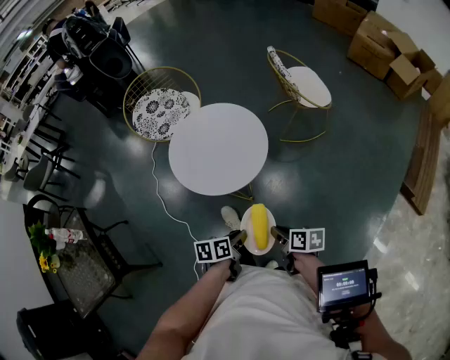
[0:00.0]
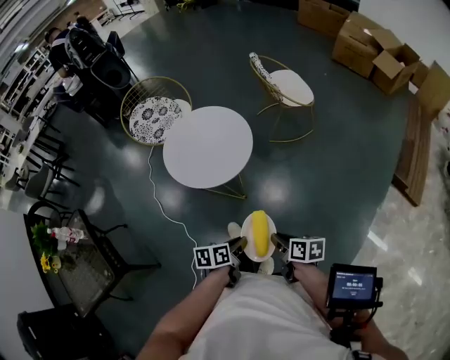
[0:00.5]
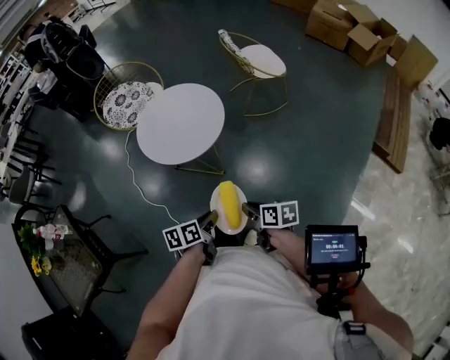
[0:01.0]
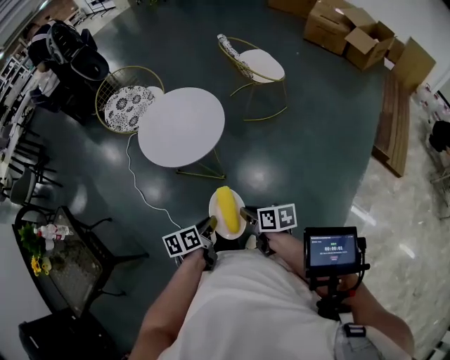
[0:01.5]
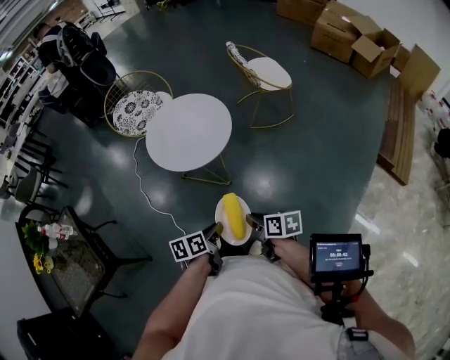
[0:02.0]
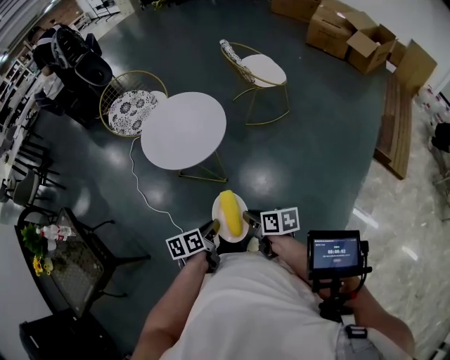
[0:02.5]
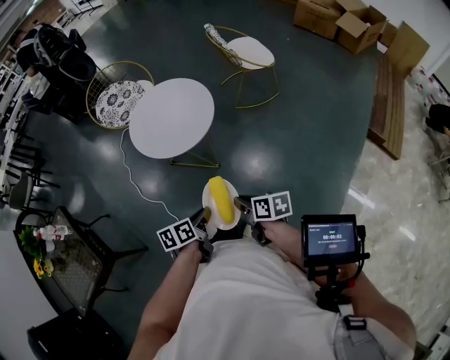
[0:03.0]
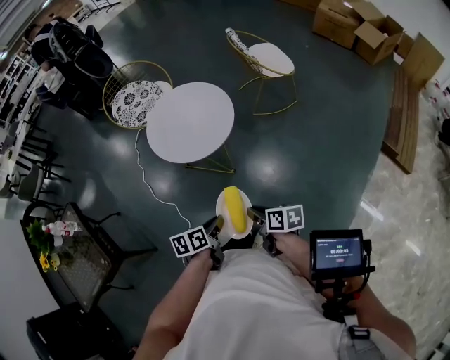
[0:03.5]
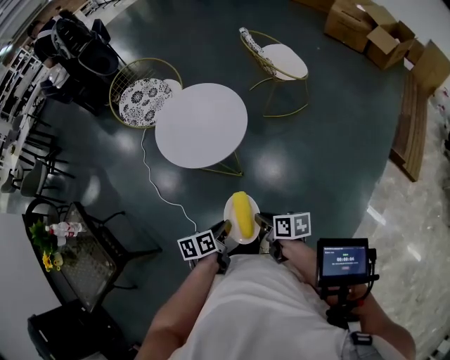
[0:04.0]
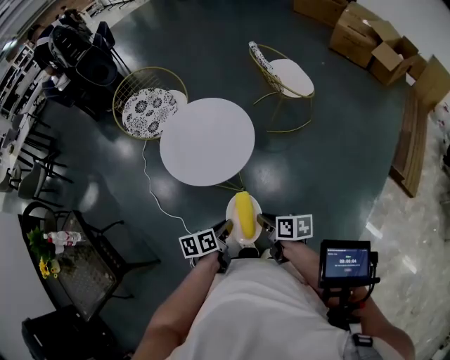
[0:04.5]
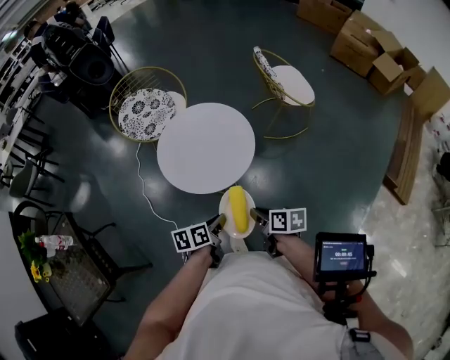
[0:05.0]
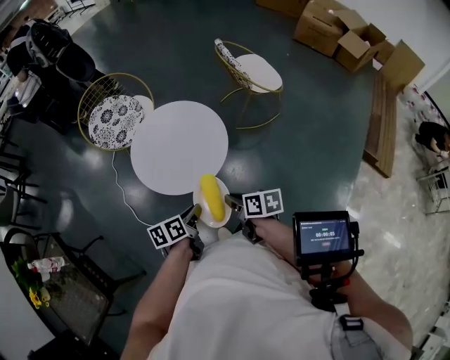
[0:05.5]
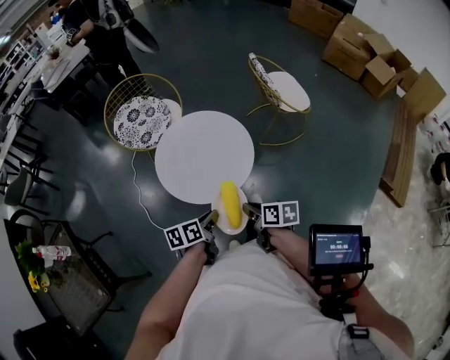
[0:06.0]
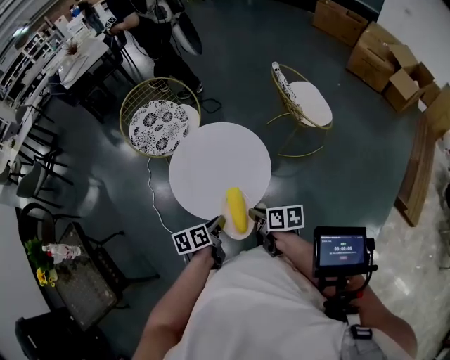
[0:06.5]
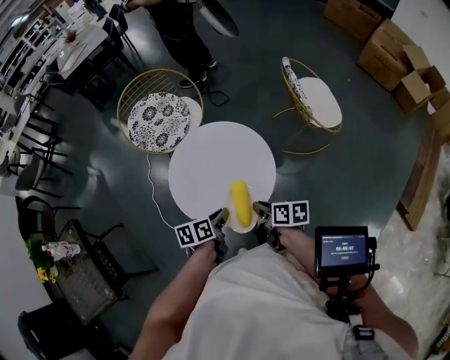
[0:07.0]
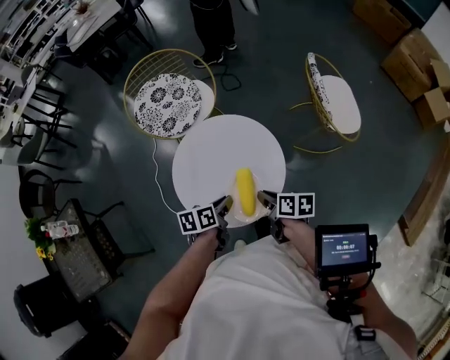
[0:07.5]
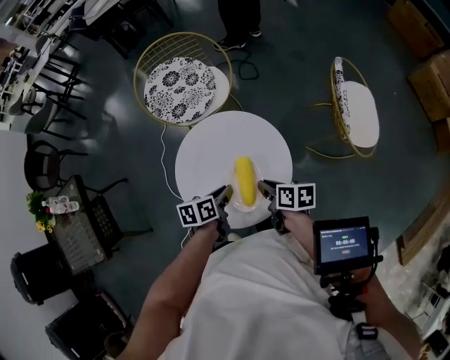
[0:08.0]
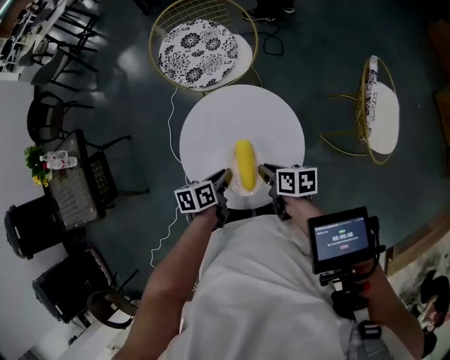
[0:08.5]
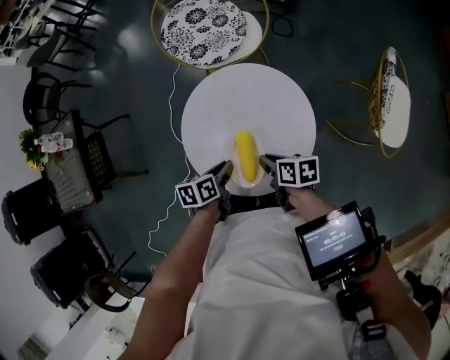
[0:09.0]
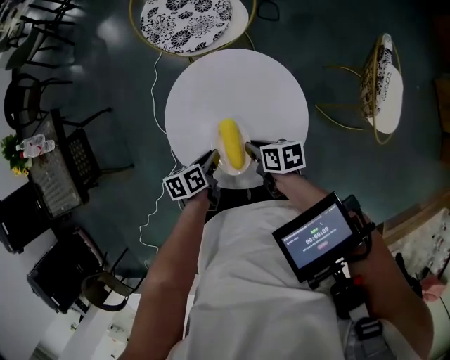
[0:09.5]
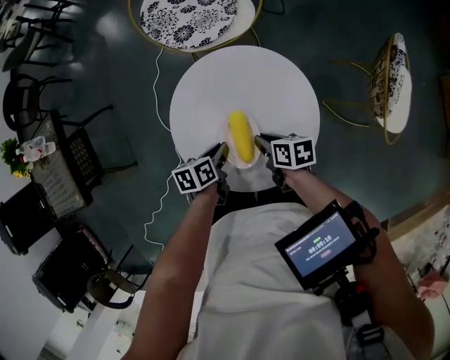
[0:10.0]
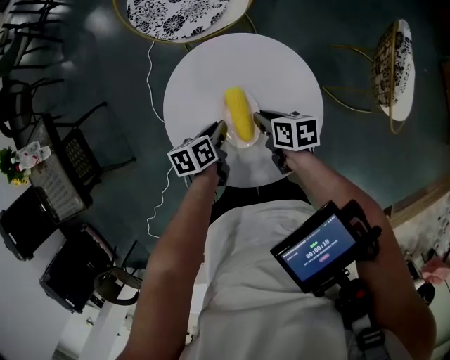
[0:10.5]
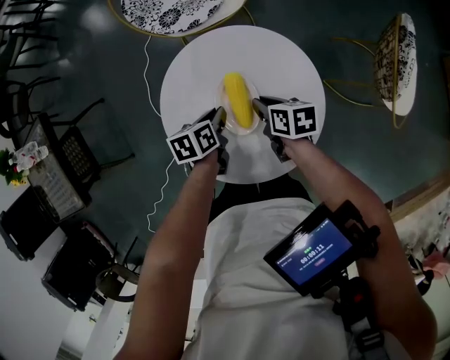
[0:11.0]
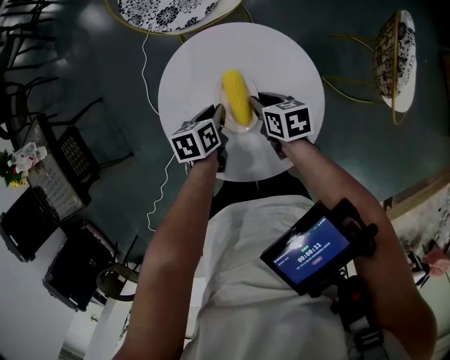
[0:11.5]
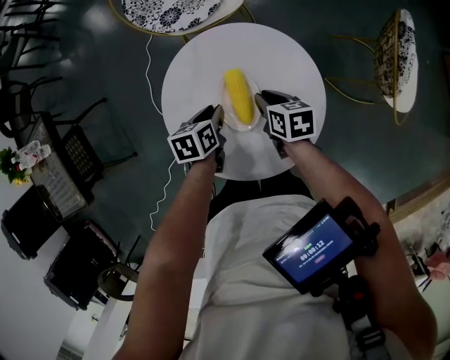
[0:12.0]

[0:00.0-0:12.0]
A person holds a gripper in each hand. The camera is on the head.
0:00.0 to 0:02.0: The two grippers go roughly 15 cm backward.
0:02.0 to 0:04.0: The grippers stay close to where they were, moving slightly.
0:04.0 to 0:06.0: Both grippers travel together forward, roughly 20 cm.
0:06.0 to 0:08.0: Both grippers travel together forward, roughly 25 cm. The right gripper turns by some 20 degrees.
0:08.0 to 0:10.0: The two grippers go about 15 cm downward and to the left. The right gripper swivels roughly 20 degrees.
0:10.0 to 0:12.0: The grippers both shift forward by some 5 cm.

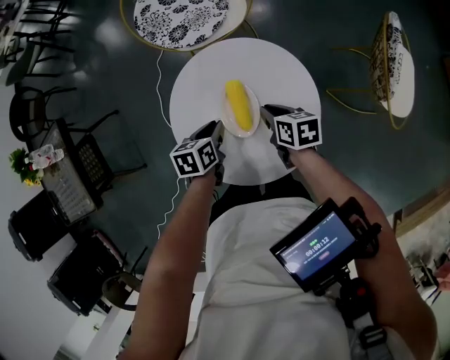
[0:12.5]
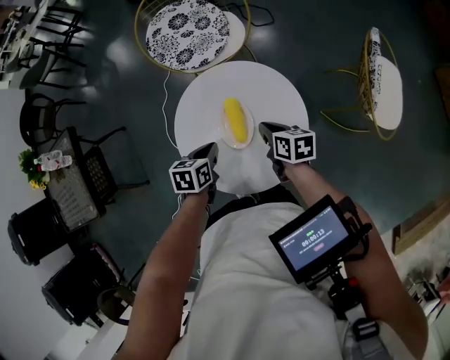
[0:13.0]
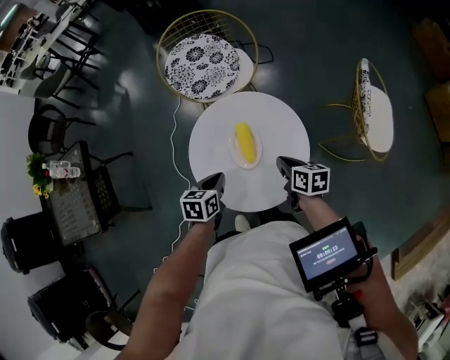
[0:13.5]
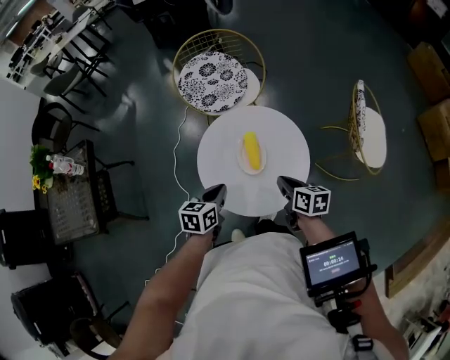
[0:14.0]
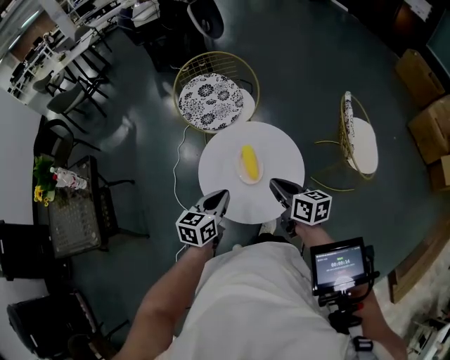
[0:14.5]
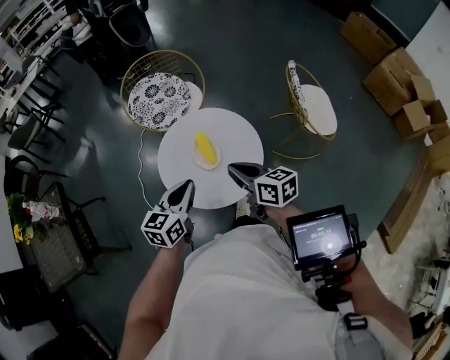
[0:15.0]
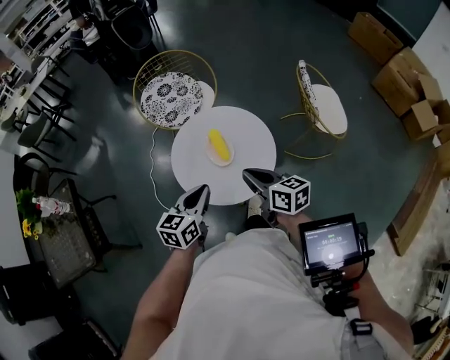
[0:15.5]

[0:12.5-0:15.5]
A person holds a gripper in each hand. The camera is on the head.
0:12.5 to 0:14.0: Both grippers move upward and backward, approximately 20 cm.
0:14.0 to 0:15.5: The grippers both shift upward and backward by about 15 cm. The left gripper rotates roughly 20 degrees.

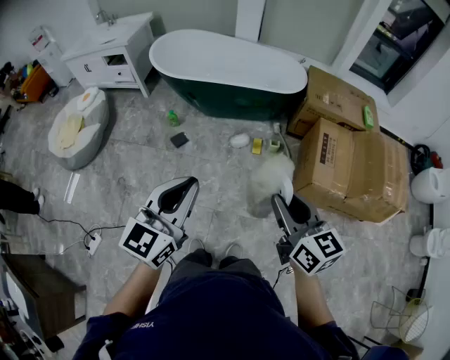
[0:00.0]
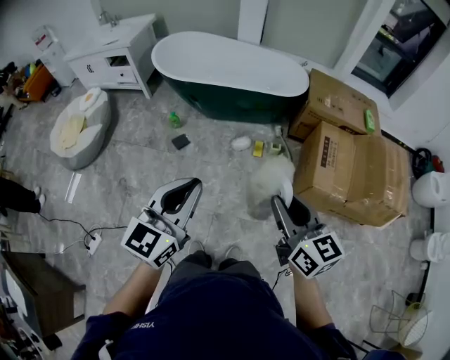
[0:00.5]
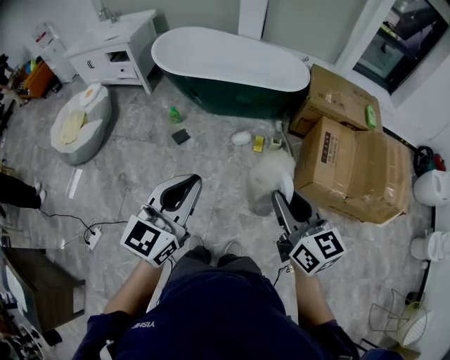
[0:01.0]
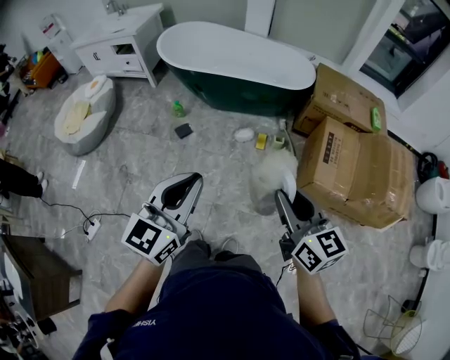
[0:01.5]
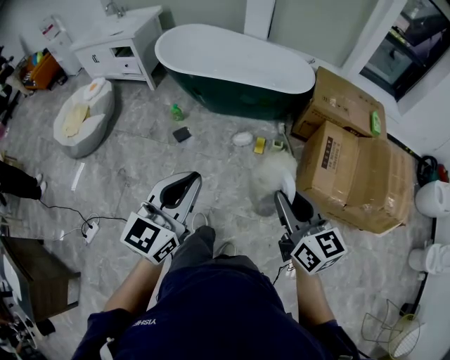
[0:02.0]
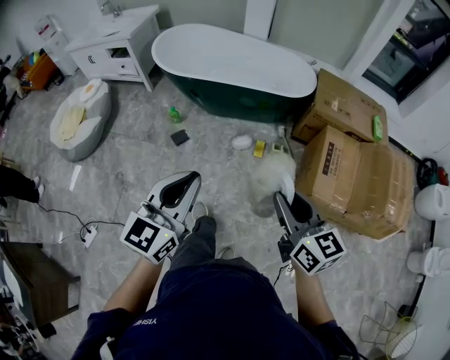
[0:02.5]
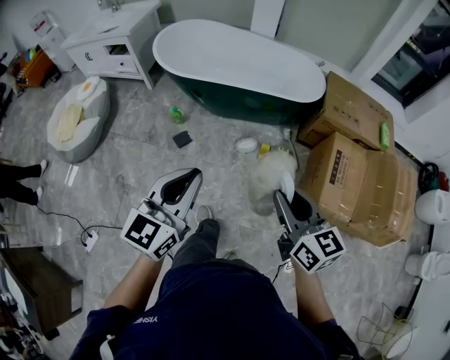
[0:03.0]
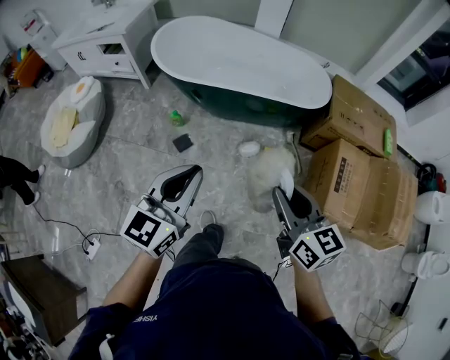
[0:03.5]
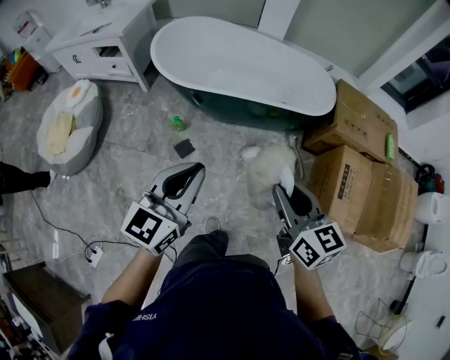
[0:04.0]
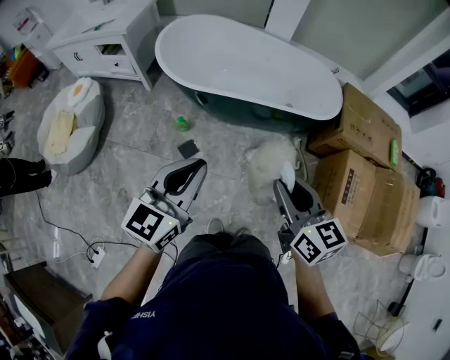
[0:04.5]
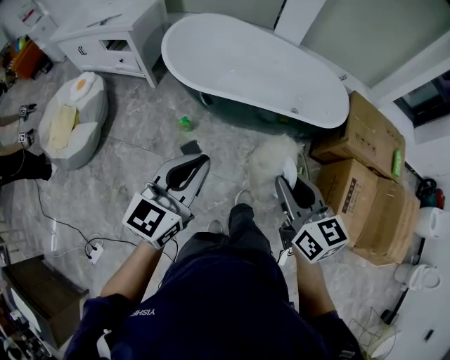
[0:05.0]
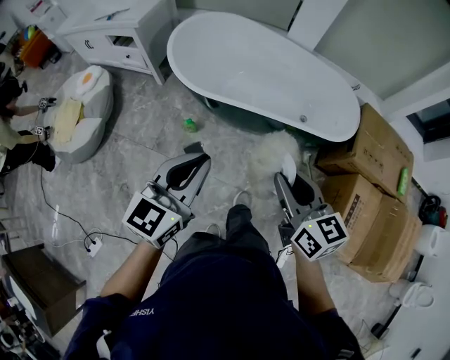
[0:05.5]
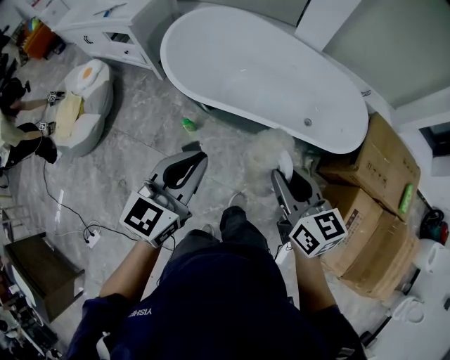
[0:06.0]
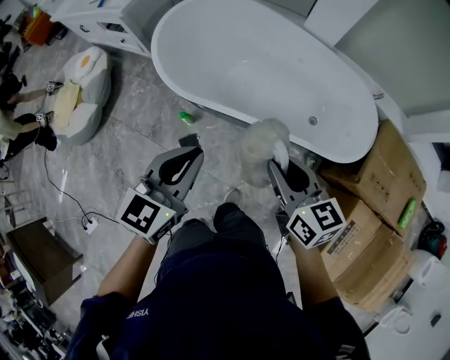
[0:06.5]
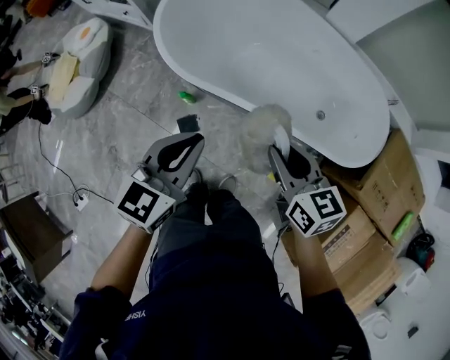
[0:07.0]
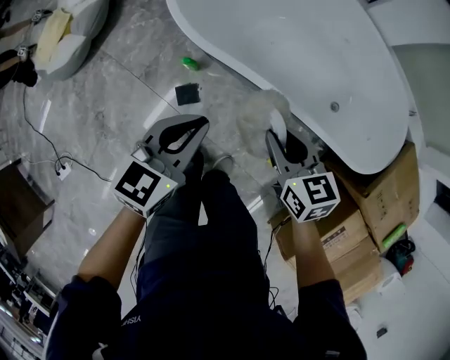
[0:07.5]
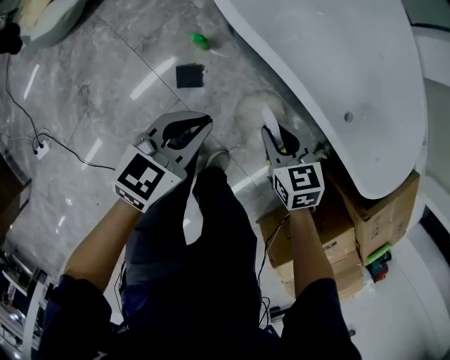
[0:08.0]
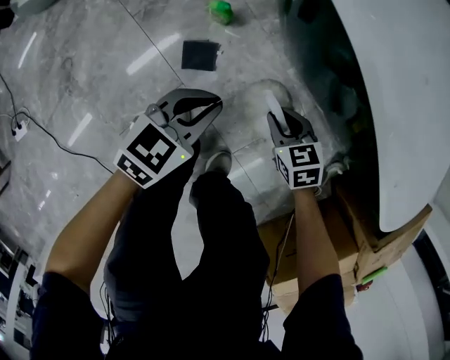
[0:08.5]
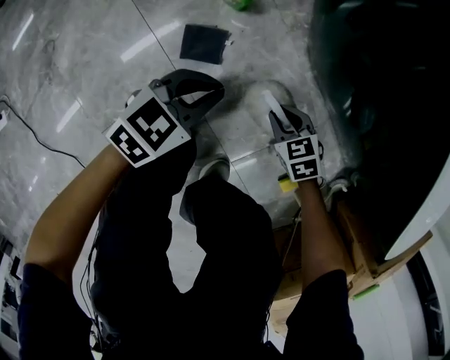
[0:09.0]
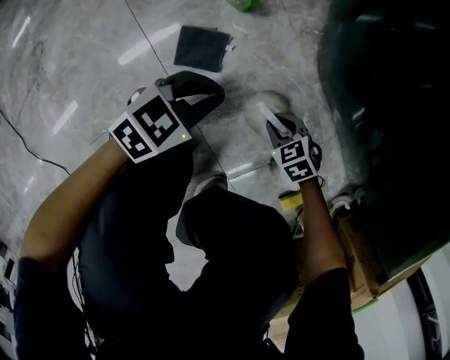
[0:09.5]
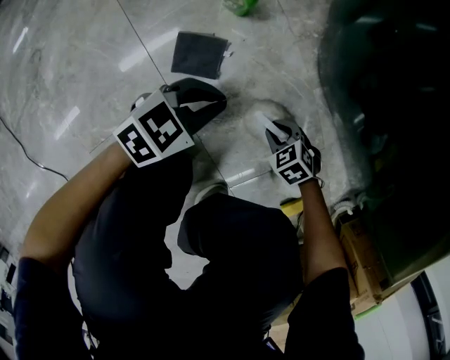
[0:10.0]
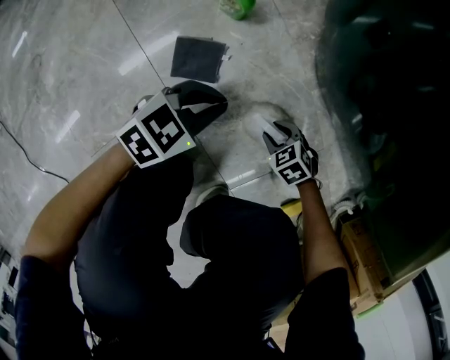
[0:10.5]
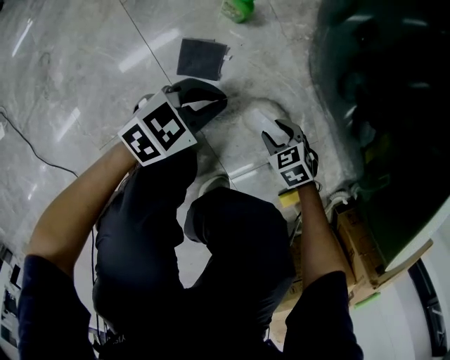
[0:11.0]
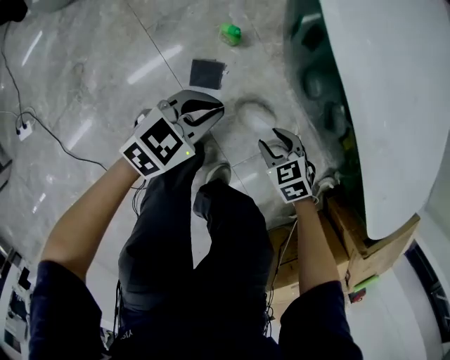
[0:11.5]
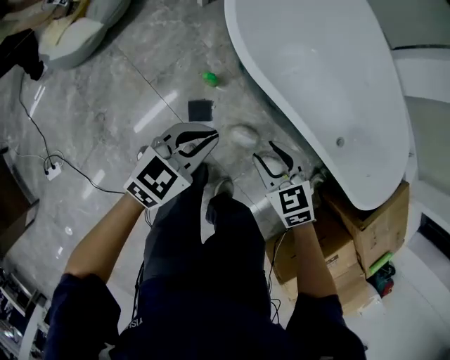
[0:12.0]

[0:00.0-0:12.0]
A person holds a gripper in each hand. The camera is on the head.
0:00.0 to 0:02.0: The left gripper shifts by roughly 5 cm, while the right gripper ends up roughly 5 cm from where it was.
0:02.0 to 0:04.0: Both grippers move forward and to the left, about 35 cm.
0:04.0 to 0:06.0: The two grippers go some 25 cm forward.
0:06.0 to 0:08.0: The grippers both shift downward by approximately 40 cm. The left gripper turns by about 20 degrees; the right gripper angles its fingers downward, by roughly 30 degrees.
0:08.0 to 0:10.0: Both grippers move downward, some 50 cm. The right gripper rotates about 50 degrees.
0:10.0 to 0:12.0: The two grippers go some 60 cm upward. The right gripper turns by some 40 degrees, and opens its fingers.
